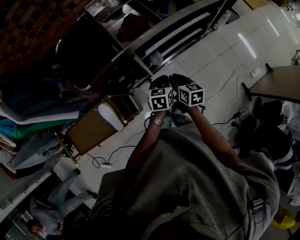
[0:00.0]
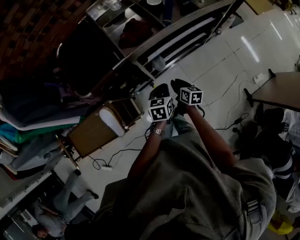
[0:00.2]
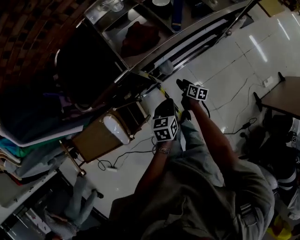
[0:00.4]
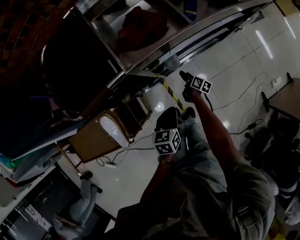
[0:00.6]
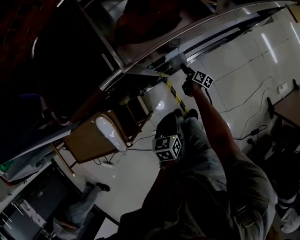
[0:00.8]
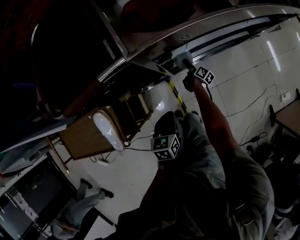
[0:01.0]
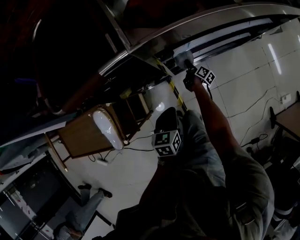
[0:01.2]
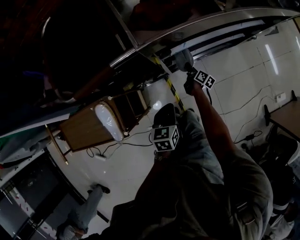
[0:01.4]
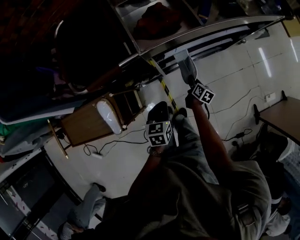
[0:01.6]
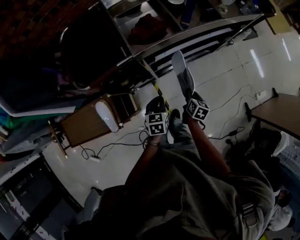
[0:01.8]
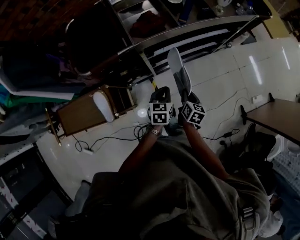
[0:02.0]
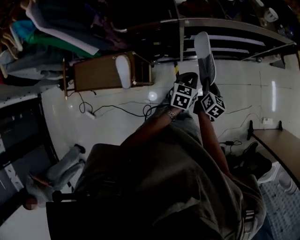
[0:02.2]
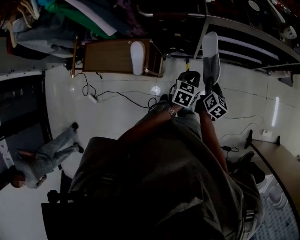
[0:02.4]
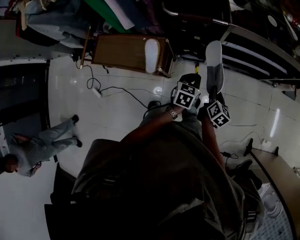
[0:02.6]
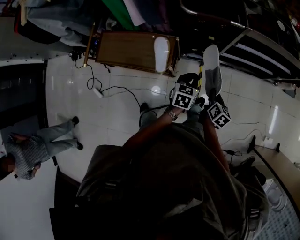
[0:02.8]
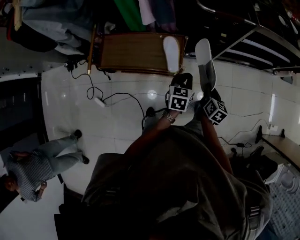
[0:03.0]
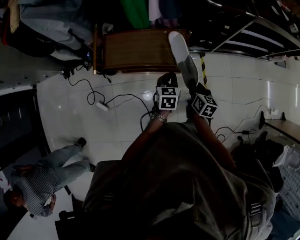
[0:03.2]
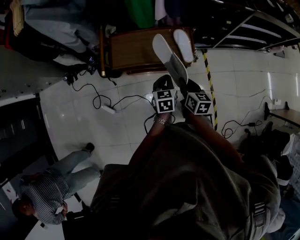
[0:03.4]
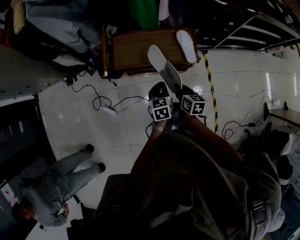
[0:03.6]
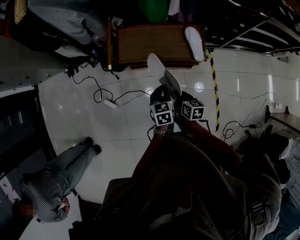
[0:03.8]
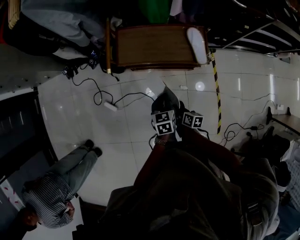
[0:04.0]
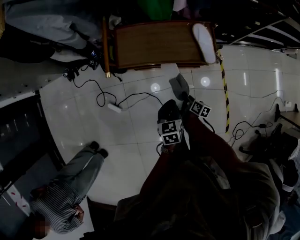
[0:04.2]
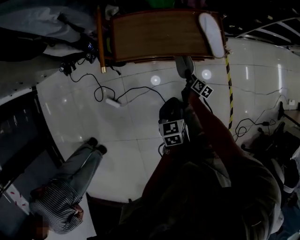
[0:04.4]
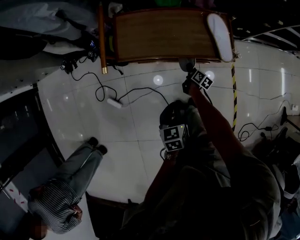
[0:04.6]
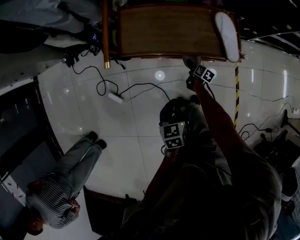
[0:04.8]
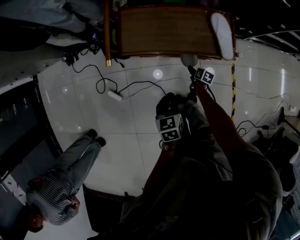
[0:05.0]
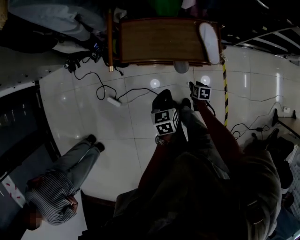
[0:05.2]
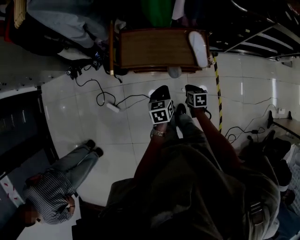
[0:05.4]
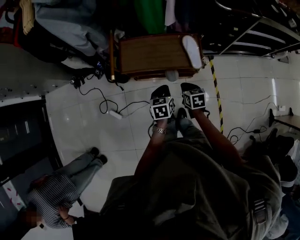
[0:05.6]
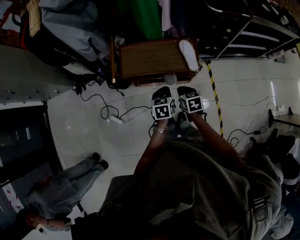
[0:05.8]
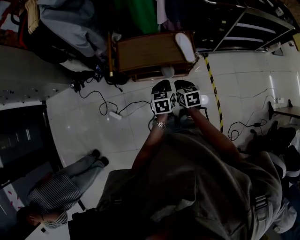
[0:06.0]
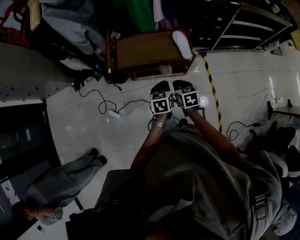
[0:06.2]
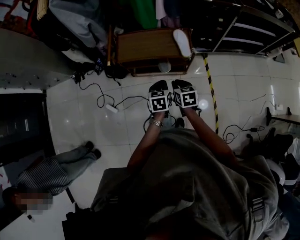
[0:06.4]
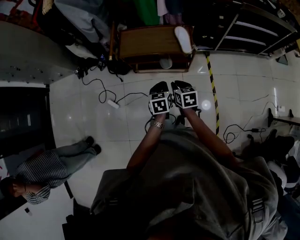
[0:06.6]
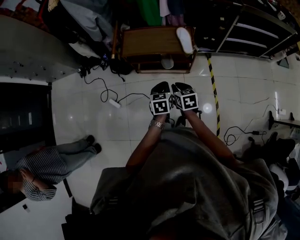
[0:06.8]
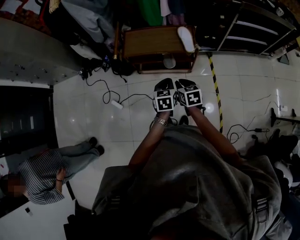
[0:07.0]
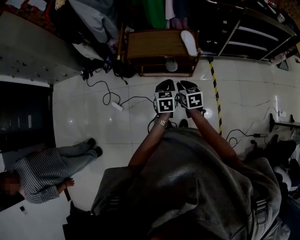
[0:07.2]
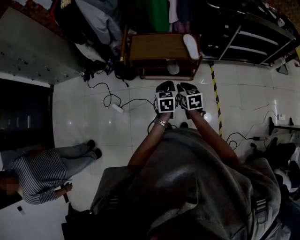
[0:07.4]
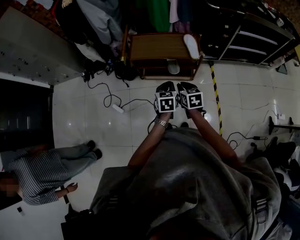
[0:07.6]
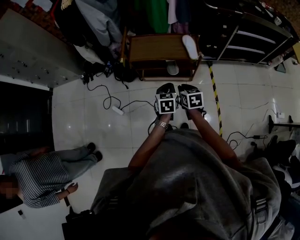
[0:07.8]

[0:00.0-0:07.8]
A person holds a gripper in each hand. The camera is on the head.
0.0 to 1.6 s: The right gripper is displaced downward by roughly 25 cm, turns by approximately 20 degrees, and opens and closes again. The left gripper goes some 15 cm downward and to the left.
1.6 to 3.2 s: The pair of grippers is taken to the left and backward, some 60 cm. The right gripper shifts roughly 20 cm upward, and rotates approximately 30 degrees.
3.2 to 4.6 s: The right gripper moves downward and to the left, about 40 cm, and rotates about 30 degrees. The left gripper travels to the left, downward and backward by some 30 cm.
4.6 to 6.2 s: The left gripper travels upward by approximately 20 cm. The right gripper travels upward and backward by approximately 50 cm, twists some 50 degrees counterclockwise, seen from behind, and opens, then closes again.
6.2 to 7.8 s: The two grippers go approximately 10 cm backward.

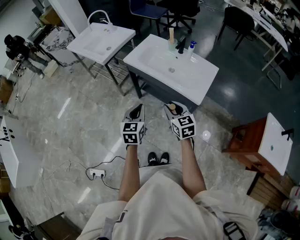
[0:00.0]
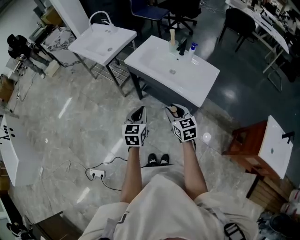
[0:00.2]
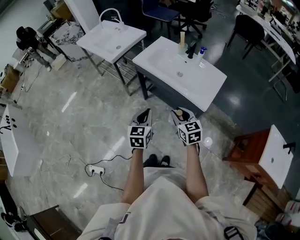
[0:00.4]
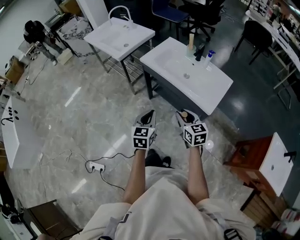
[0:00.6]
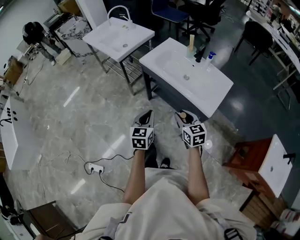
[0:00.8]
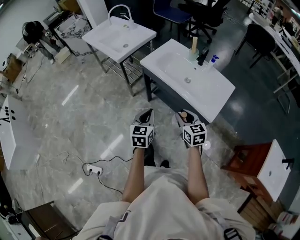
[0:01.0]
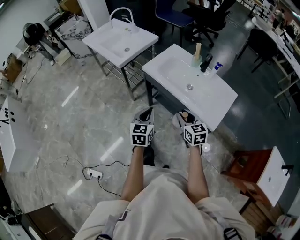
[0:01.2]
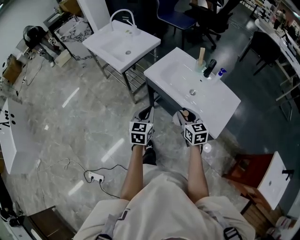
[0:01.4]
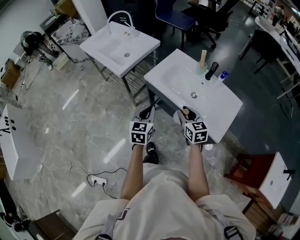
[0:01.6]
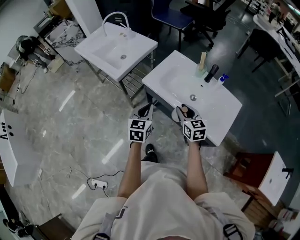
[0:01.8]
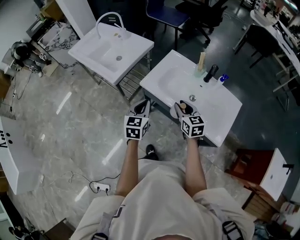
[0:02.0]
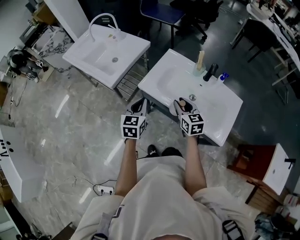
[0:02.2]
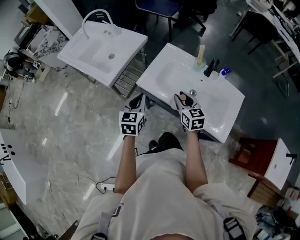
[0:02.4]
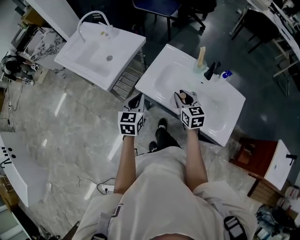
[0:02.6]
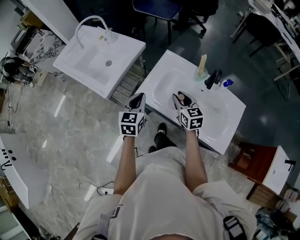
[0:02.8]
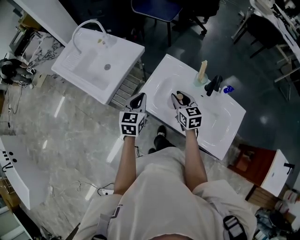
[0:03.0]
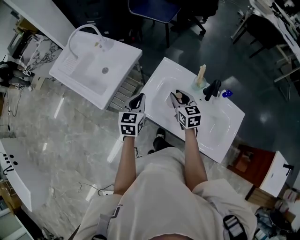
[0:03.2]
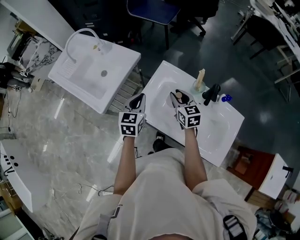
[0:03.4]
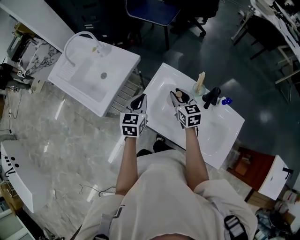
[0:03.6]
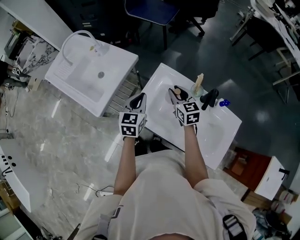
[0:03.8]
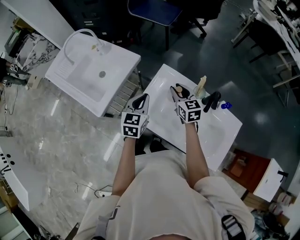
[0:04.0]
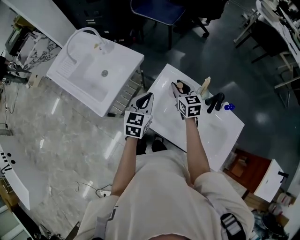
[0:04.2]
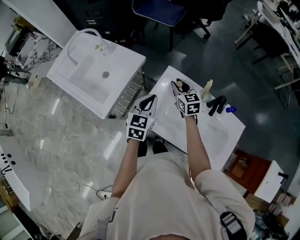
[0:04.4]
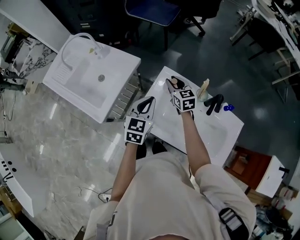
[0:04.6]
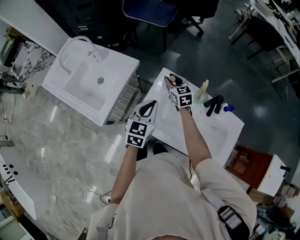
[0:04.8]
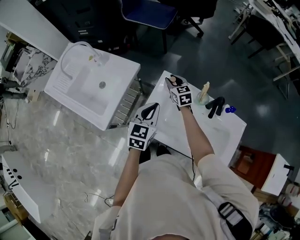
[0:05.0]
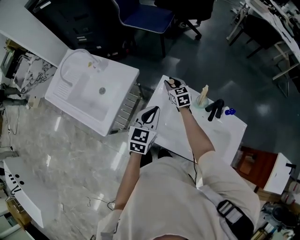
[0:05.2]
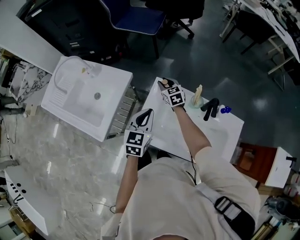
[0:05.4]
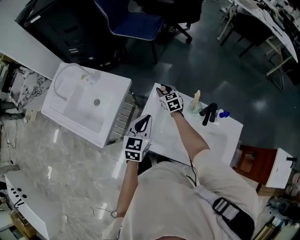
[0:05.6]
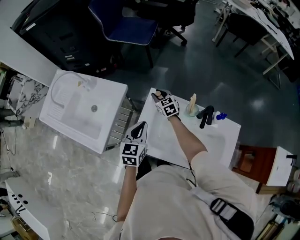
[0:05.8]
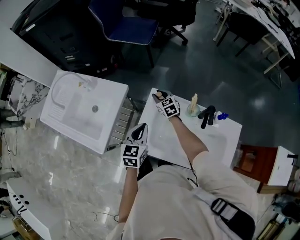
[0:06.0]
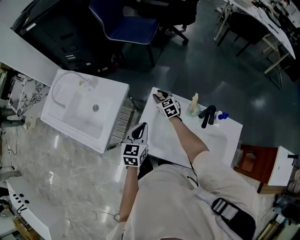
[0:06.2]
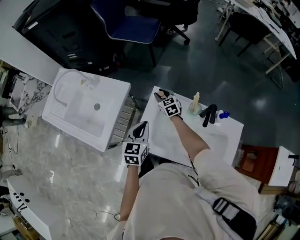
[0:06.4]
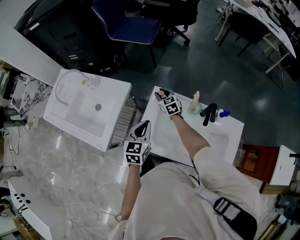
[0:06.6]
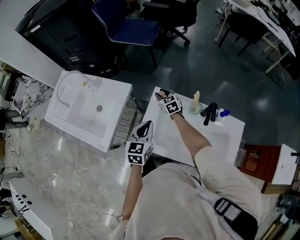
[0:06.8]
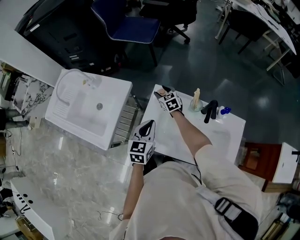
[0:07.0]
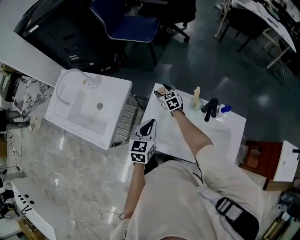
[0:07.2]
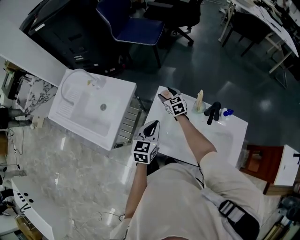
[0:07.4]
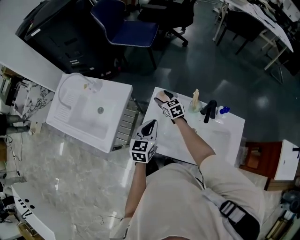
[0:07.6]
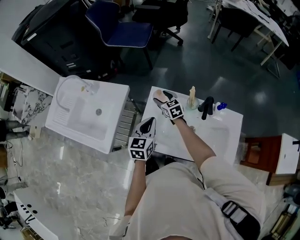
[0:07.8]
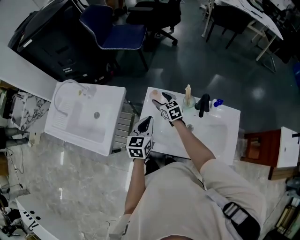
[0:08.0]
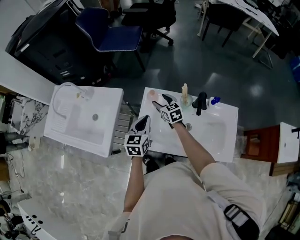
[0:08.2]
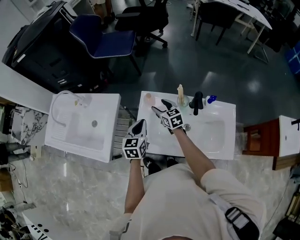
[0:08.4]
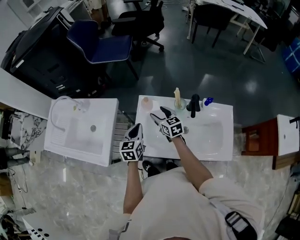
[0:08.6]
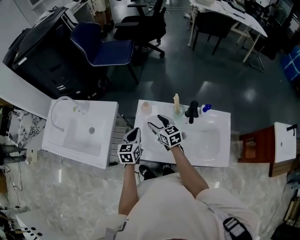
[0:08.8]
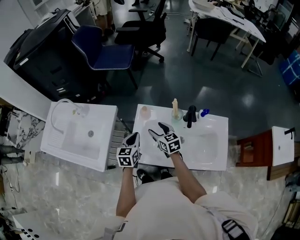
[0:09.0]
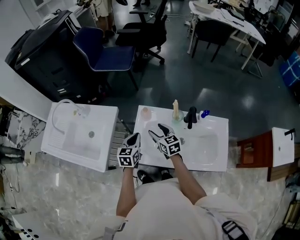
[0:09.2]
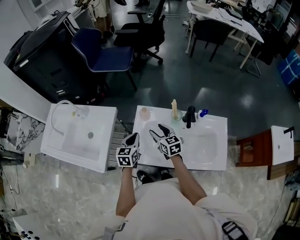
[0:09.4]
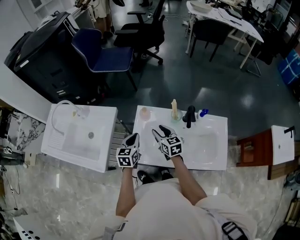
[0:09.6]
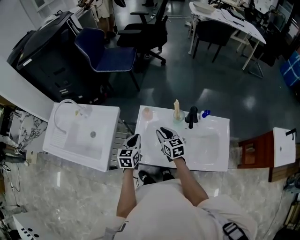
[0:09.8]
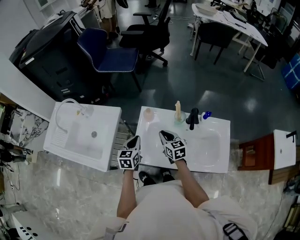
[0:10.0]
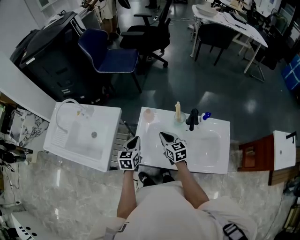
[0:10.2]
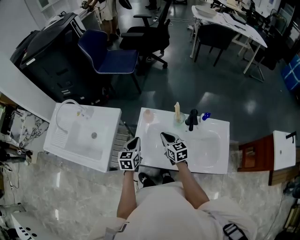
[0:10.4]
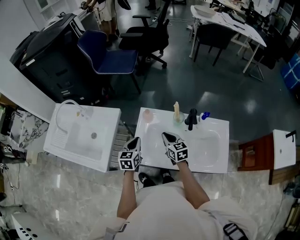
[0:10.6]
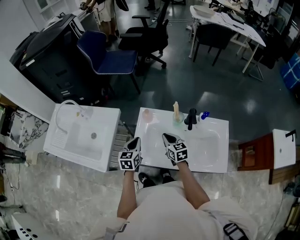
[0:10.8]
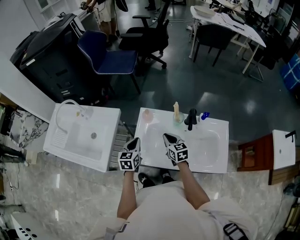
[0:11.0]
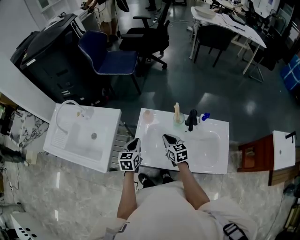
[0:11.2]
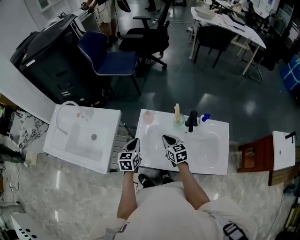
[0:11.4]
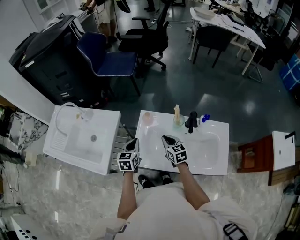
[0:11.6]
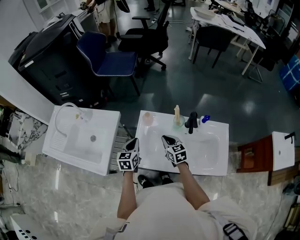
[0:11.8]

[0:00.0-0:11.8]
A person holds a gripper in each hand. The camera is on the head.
0.0 to 1.4 s: The grippers both shift forward by some 15 cm.
1.4 to 3.0 s: Both grippers travel together forward, some 30 cm.
3.0 to 4.4 s: The left gripper heads forward, covering roughly 10 cm, while the right gripper travels forward by roughly 15 cm.
4.4 to 6.0 s: The right gripper is displaced downward and forward by roughly 15 cm.
6.0 to 7.4 s: The right gripper opens its fingers.
7.4 to 8.8 s: The right gripper travels backward and upward by some 15 cm; the left gripper changes place by about 5 cm.
8.8 to 10.4 s: The right gripper shifts by roughly 5 cm, and closes up.
10.4 to 11.8 s: The grippers make only small movements.

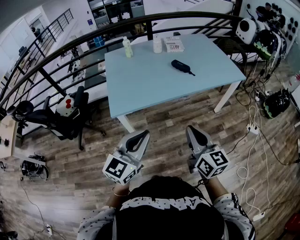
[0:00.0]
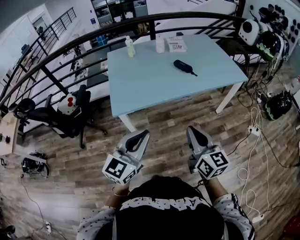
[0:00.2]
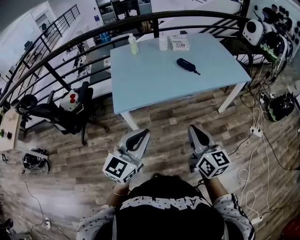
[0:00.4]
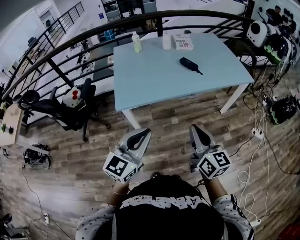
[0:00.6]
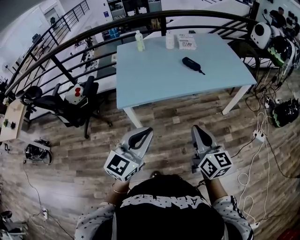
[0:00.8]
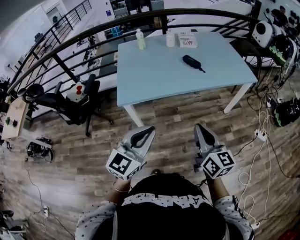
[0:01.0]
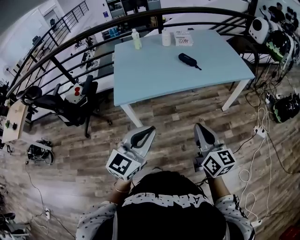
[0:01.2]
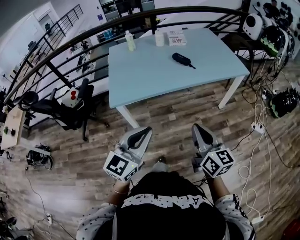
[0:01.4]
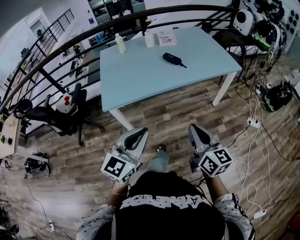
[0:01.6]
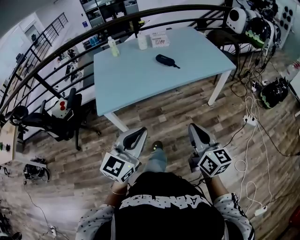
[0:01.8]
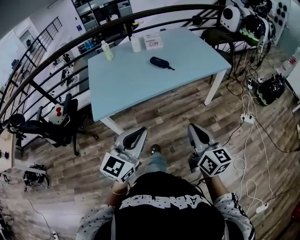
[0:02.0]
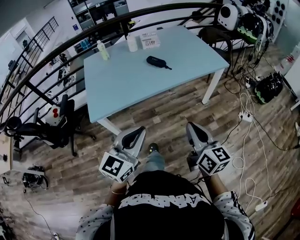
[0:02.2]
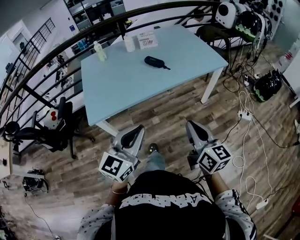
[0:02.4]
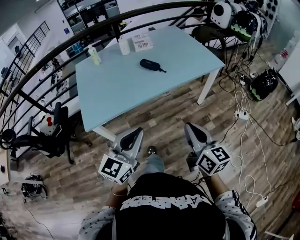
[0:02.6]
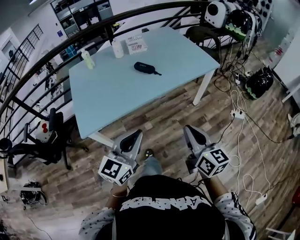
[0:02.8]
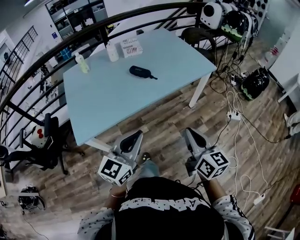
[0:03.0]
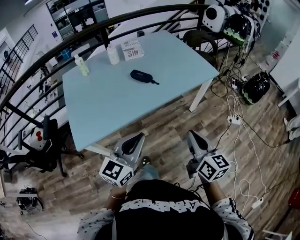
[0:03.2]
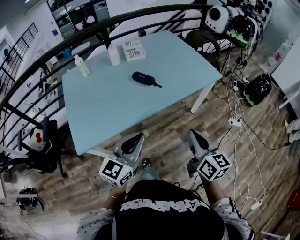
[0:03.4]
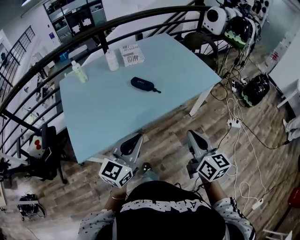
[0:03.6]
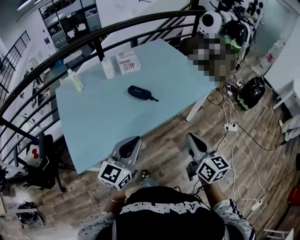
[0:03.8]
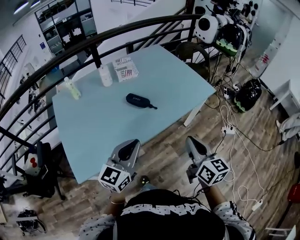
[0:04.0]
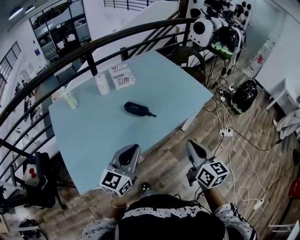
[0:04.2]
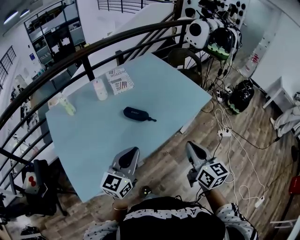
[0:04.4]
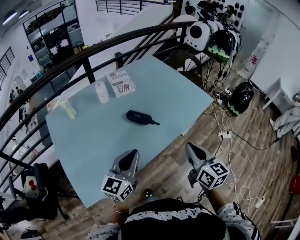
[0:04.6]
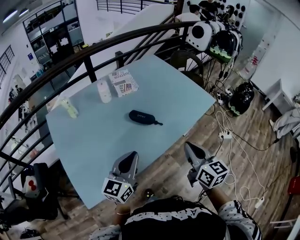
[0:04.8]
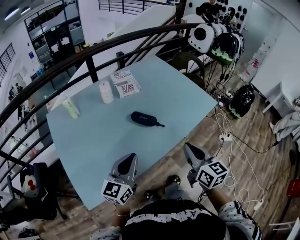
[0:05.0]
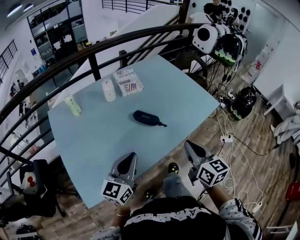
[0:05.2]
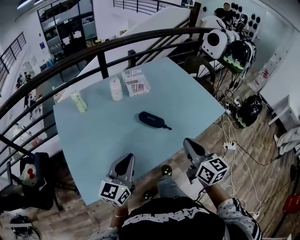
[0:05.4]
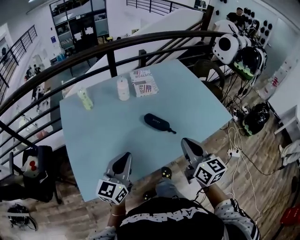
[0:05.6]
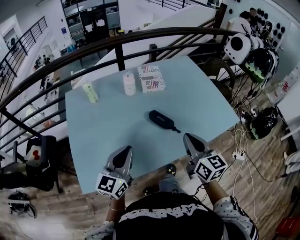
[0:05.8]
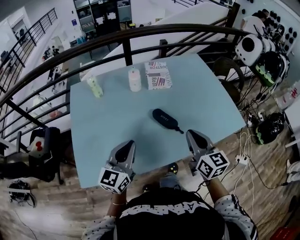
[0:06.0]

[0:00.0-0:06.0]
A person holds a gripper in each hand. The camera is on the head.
0.0 to 1.6 s: The two grippers go roughly 10 cm to the right.
1.6 to 3.0 s: Both grippers travel together forward, roughly 15 cm.
3.0 to 4.4 s: The left gripper moves forward and to the left, roughly 25 cm; the right gripper goes roughly 20 cm forward.
4.4 to 6.0 s: The left gripper moves to the left and forward, approximately 15 cm, and swivels some 20 degrees. Meanwhile the right gripper heads forward and to the left, covering roughly 20 cm, and rotates some 20 degrees.
